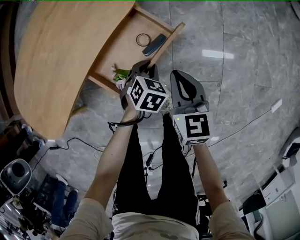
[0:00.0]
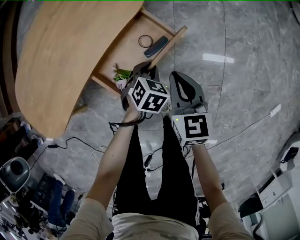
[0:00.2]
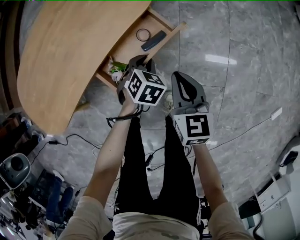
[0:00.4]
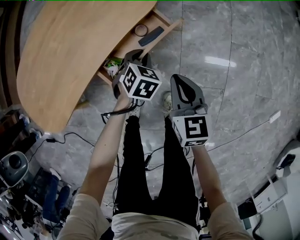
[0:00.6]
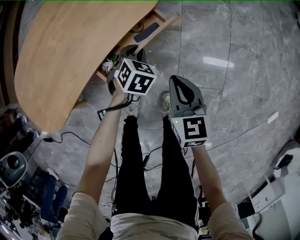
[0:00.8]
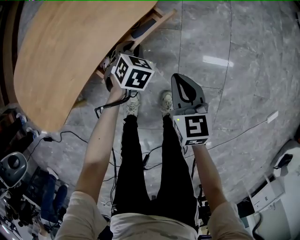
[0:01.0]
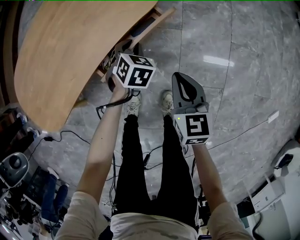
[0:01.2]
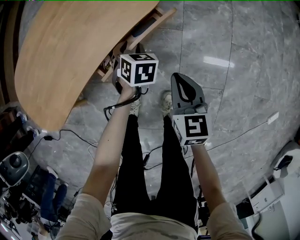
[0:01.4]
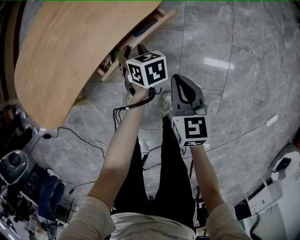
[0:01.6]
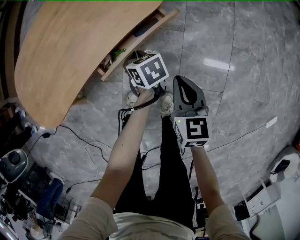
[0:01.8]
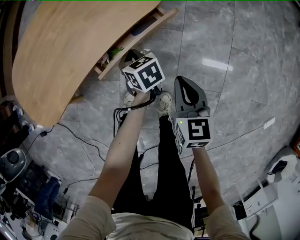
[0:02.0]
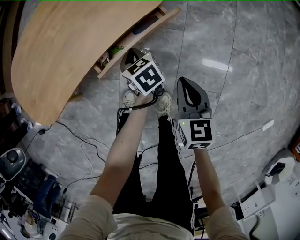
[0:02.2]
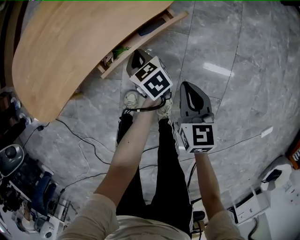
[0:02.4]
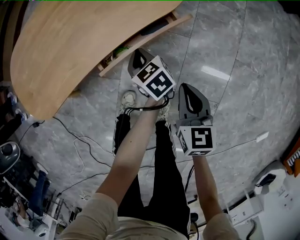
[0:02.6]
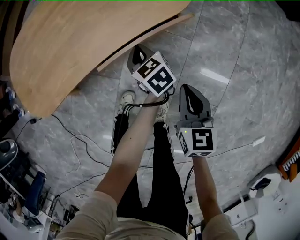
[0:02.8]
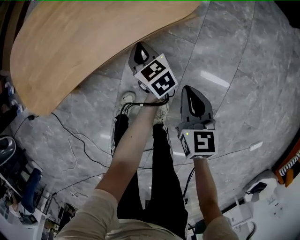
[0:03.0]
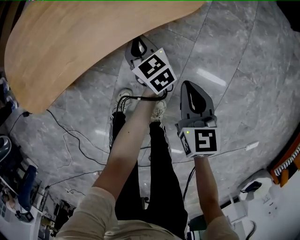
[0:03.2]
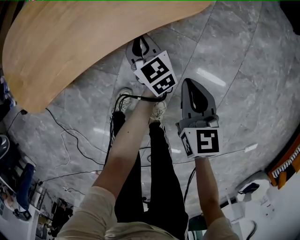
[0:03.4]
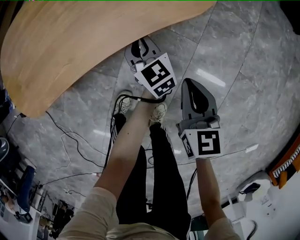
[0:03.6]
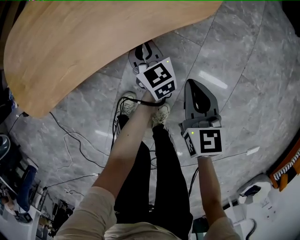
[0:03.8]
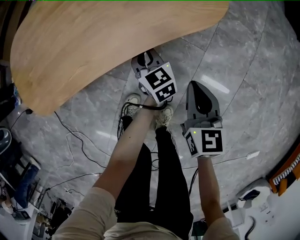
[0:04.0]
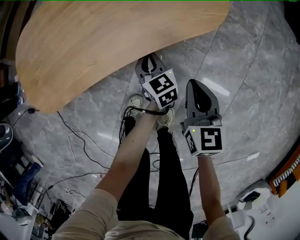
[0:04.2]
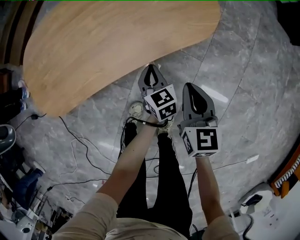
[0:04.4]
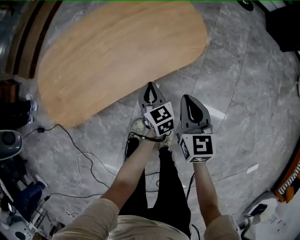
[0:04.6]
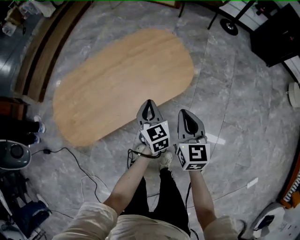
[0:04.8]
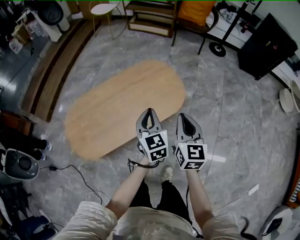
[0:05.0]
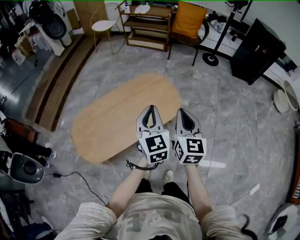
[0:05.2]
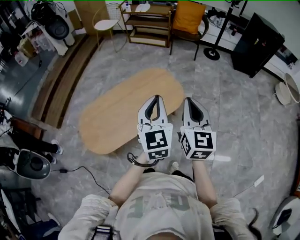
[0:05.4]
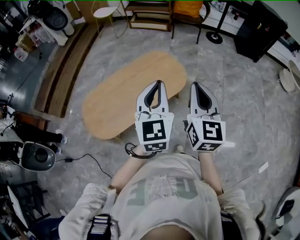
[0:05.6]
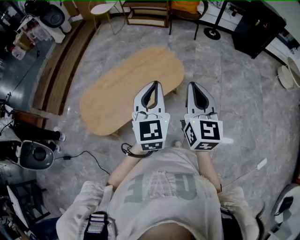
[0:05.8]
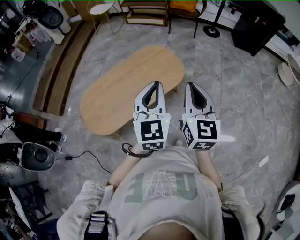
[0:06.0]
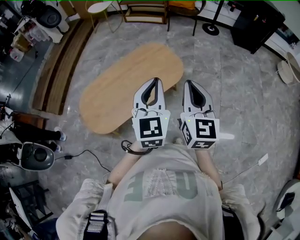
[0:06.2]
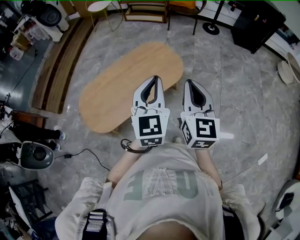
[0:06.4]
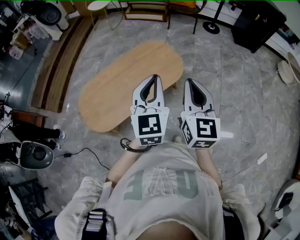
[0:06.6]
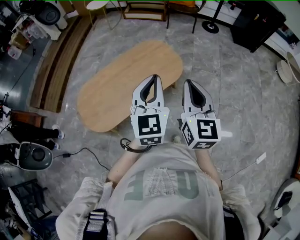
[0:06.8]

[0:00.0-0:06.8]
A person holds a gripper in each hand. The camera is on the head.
0:00.0 to 0:01.4: The left gripper goes some 15 cm to the left and forward, rotates approximately 30 degrees, and opens.
0:01.4 to 0:02.8: The left gripper rotates around the line of its fingers by roughly 50 degrees, counterclockwise from behind, and closes up.
0:02.8 to 0:04.0: The left gripper ends up some 5 cm from where it was; the right gripper travels forward by some 5 cm.
0:04.0 to 0:05.4: The two grippers go approximately 60 cm upward. The left gripper turns by approximately 40 degrees; the right gripper turns by some 30 degrees.
0:05.4 to 0:06.8: The right gripper shifts some 5 cm backward.

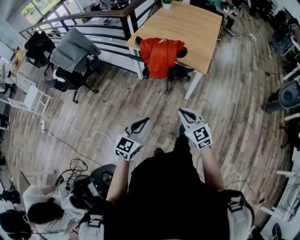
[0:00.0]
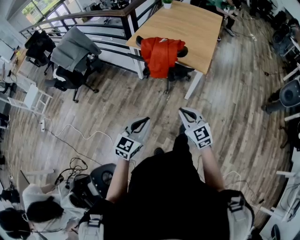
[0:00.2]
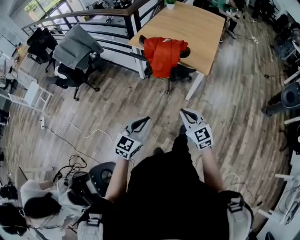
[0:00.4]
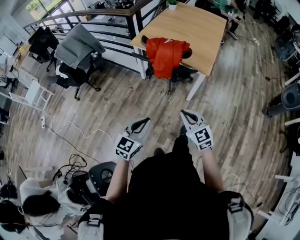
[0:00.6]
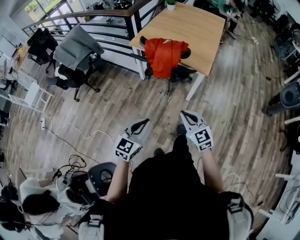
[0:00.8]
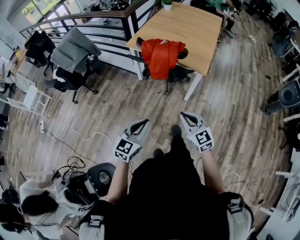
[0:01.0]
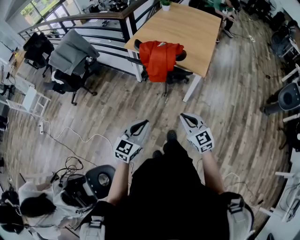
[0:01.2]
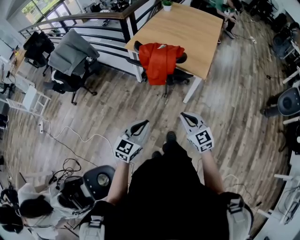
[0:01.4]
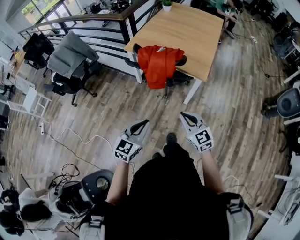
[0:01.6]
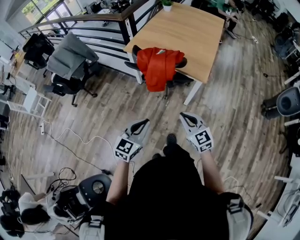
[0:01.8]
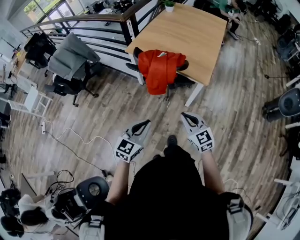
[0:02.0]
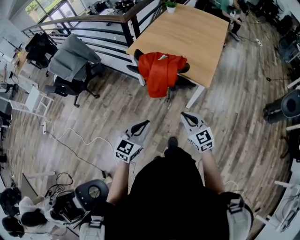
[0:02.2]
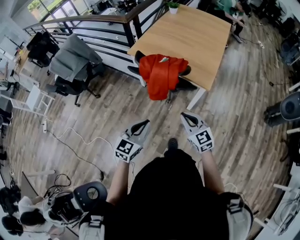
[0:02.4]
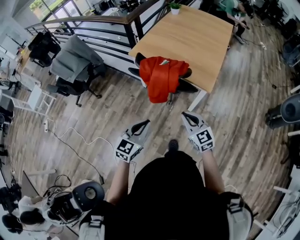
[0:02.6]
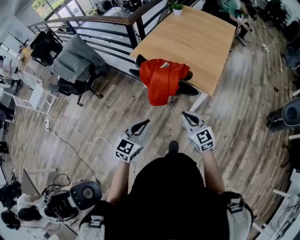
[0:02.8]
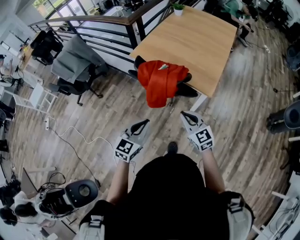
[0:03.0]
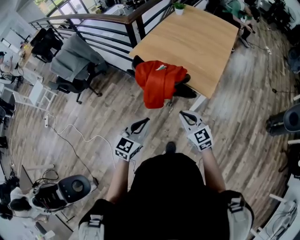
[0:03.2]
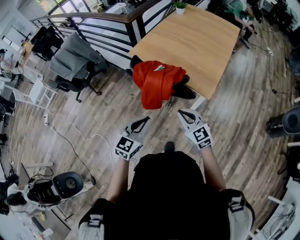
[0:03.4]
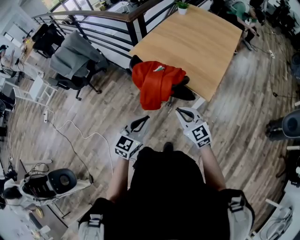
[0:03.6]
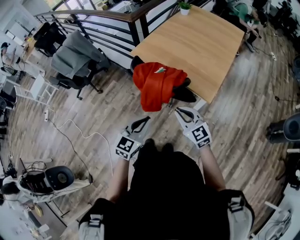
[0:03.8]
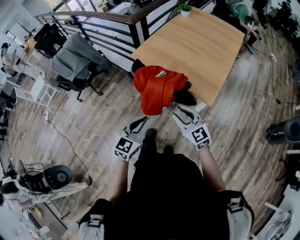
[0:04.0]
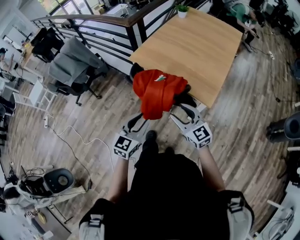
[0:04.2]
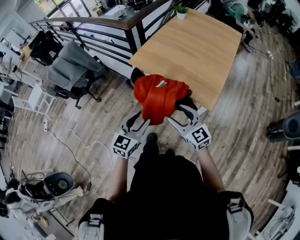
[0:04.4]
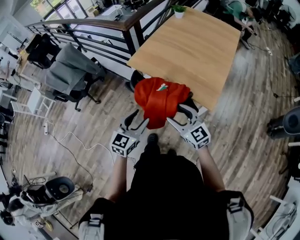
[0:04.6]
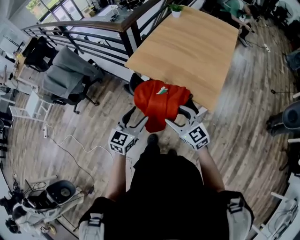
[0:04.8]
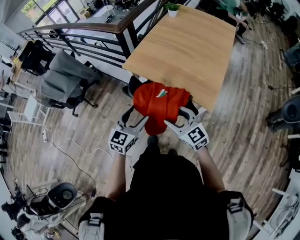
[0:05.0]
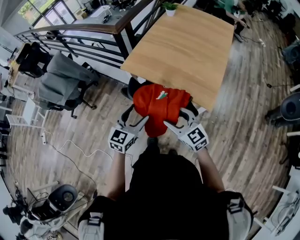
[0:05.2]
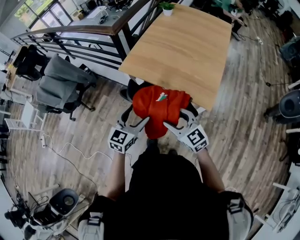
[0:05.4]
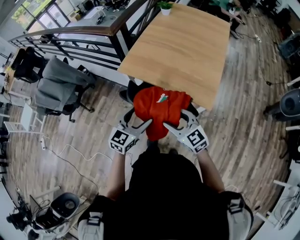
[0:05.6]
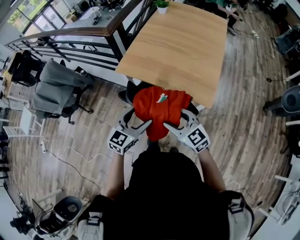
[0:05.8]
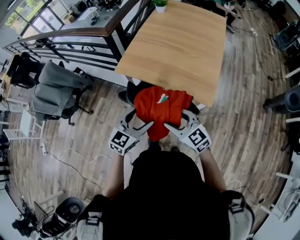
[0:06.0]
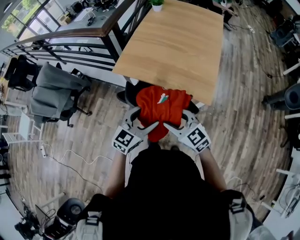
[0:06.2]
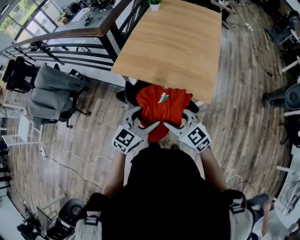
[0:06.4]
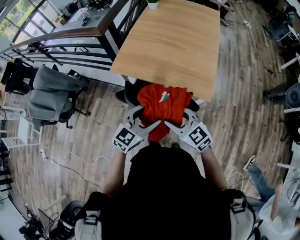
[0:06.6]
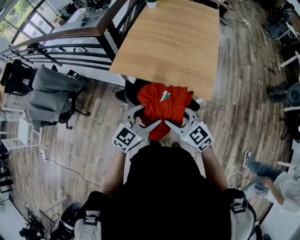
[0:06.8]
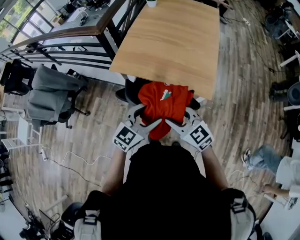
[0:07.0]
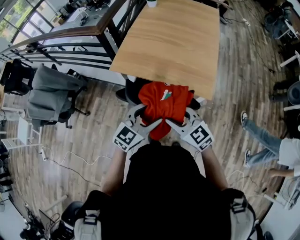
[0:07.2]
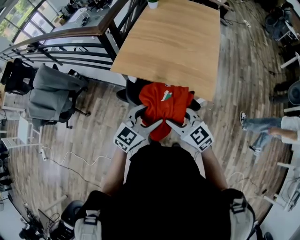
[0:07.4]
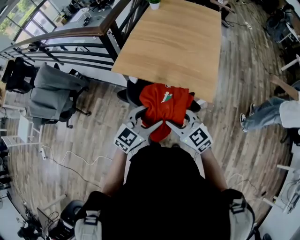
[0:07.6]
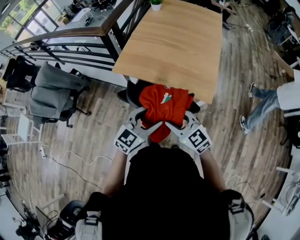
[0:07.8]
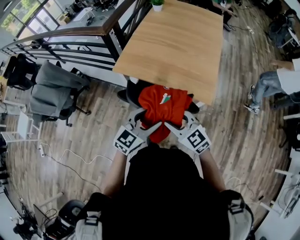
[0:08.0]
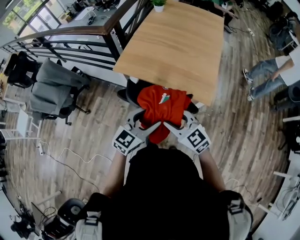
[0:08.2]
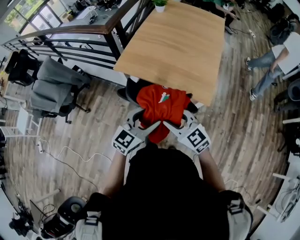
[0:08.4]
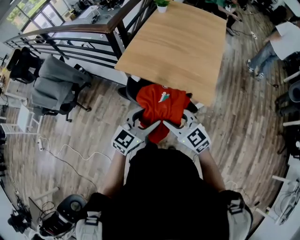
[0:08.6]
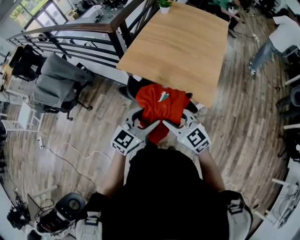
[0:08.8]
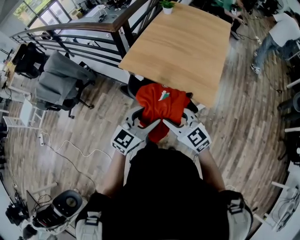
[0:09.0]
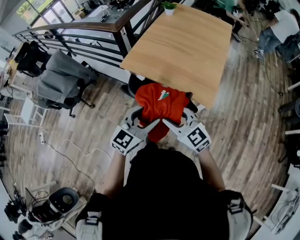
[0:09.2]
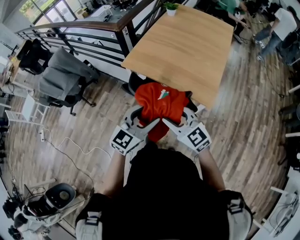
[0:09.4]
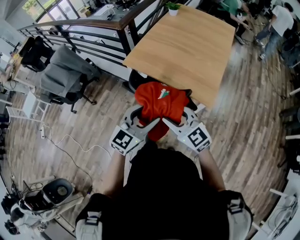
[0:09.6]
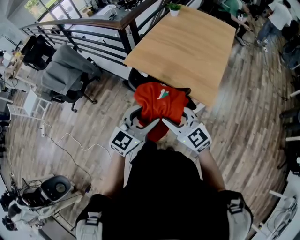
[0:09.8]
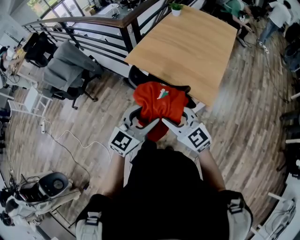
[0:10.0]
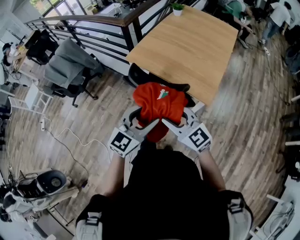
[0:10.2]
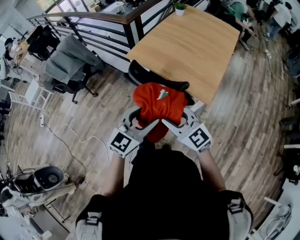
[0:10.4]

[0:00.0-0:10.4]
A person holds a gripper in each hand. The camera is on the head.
0:00.0 to 0:01.4: There are only small adjustments of the grippers.
0:01.4 to 0:03.0: The grippers both shift forward by some 15 cm.
0:03.0 to 0:04.4: The grippers both shift forward by approximately 10 cm. The left gripper opens up; the right gripper opens its fingers.
0:04.4 to 0:06.0: The left gripper is displaced forward by approximately 10 cm, and opens its fingers. The right gripper heads forward and to the left, covering roughly 10 cm.
0:06.0 to 0:07.4: The grippers stay close to where they were, moving slightly.
0:07.4 to 0:09.0: The grippers move only a little.
0:09.0 to 0:10.4: The grippers both shift backward by roughly 10 cm.

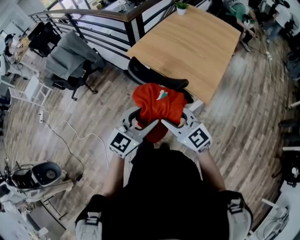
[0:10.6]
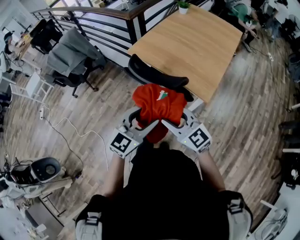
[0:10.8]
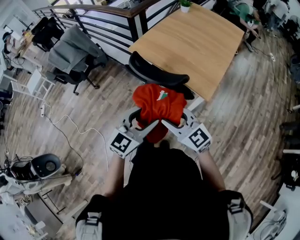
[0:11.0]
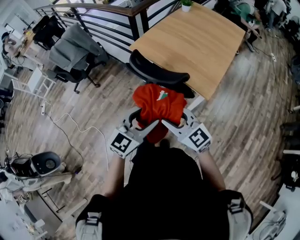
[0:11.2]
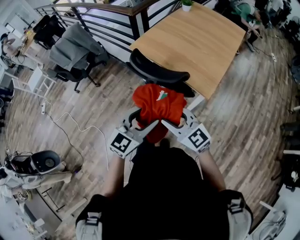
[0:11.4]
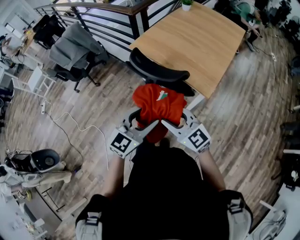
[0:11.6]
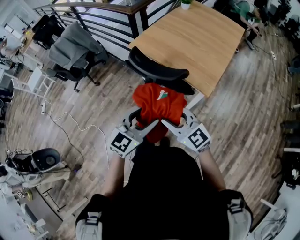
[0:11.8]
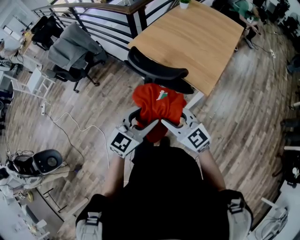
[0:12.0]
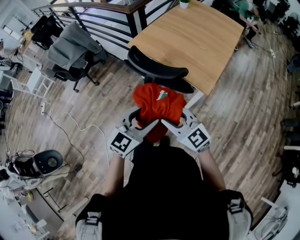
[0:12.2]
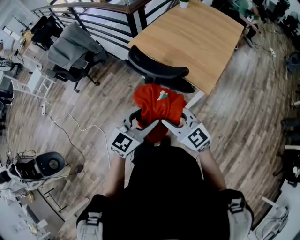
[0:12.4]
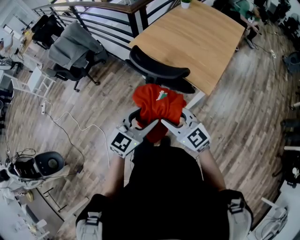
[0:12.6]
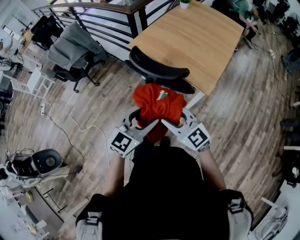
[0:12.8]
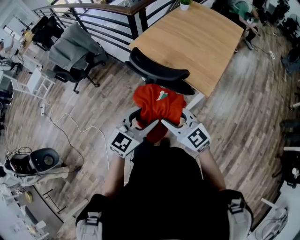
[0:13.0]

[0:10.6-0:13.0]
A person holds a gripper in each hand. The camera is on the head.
0:10.6 to 0:11.8: Both grippers travel together backward, approximately 5 cm.
0:11.8 to 0:13.0: Both grippers stay about where they are.

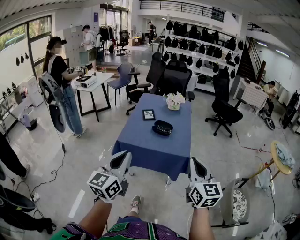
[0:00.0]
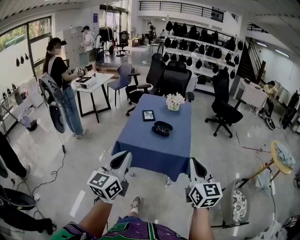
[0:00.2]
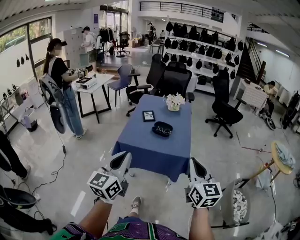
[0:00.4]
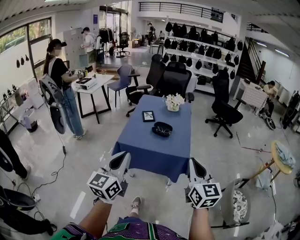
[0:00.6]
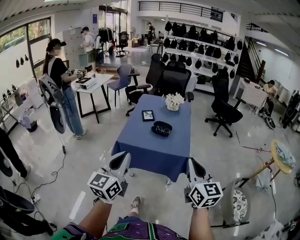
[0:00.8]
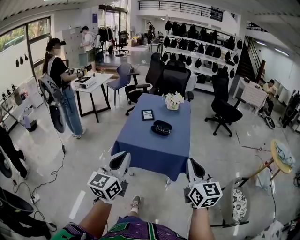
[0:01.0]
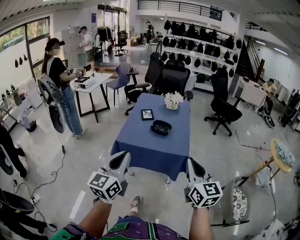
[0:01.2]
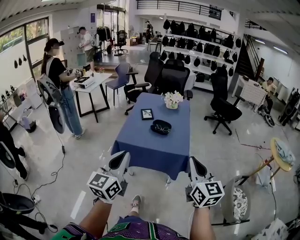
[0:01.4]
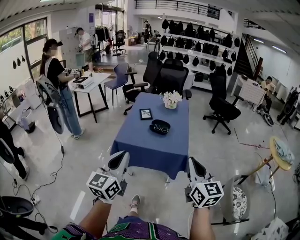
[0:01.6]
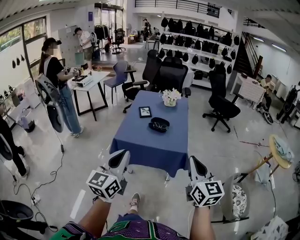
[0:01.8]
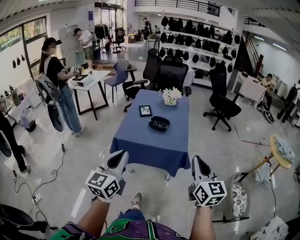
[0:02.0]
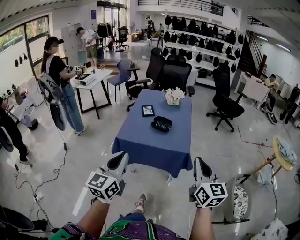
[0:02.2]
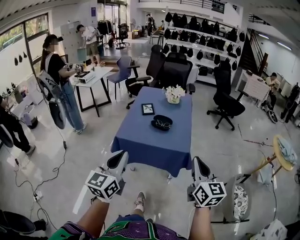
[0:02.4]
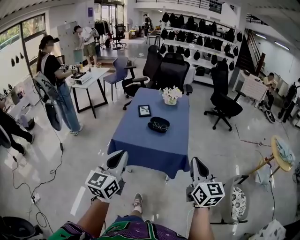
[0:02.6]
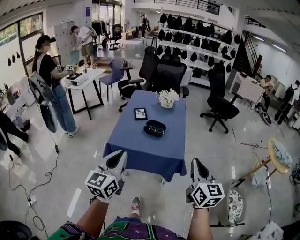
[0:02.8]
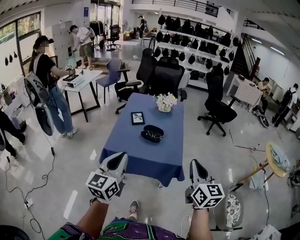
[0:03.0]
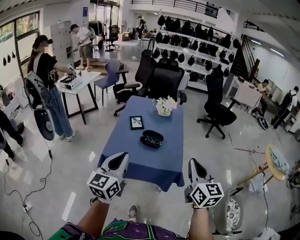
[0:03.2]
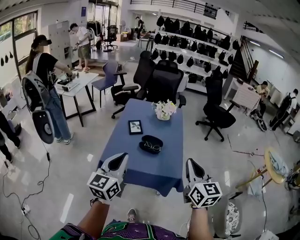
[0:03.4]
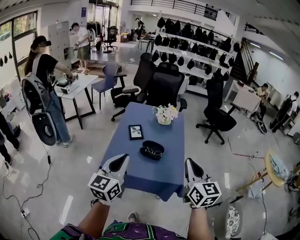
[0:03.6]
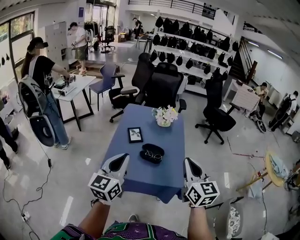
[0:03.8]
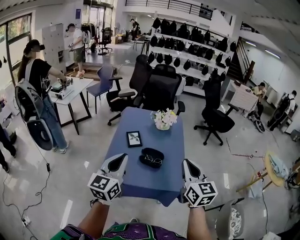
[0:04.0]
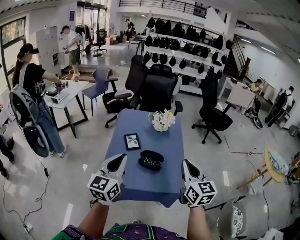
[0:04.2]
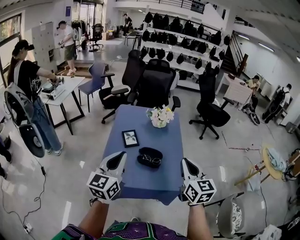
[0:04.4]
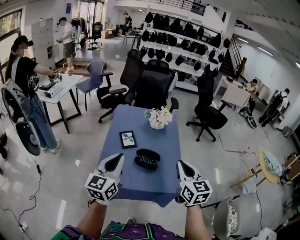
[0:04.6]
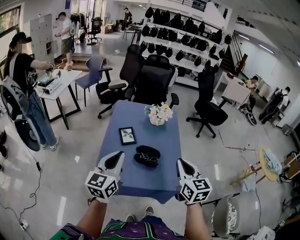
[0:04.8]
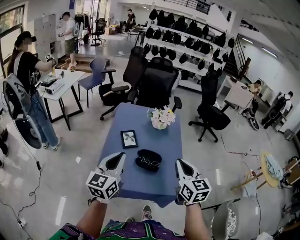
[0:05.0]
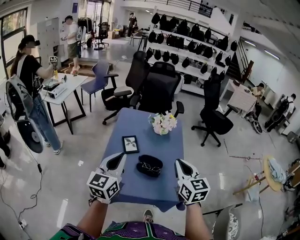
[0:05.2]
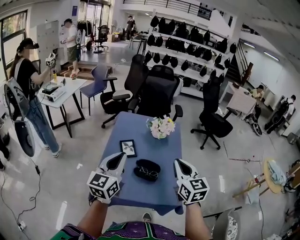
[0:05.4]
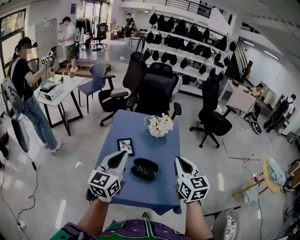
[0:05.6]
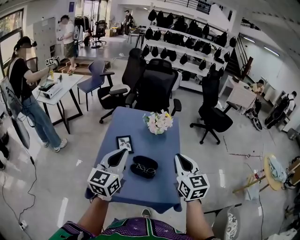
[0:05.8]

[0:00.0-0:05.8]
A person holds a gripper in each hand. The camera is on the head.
0:00.0 to 0:01.4: The two grippers keep their place.
0:01.4 to 0:02.8: Both grippers move forward, roughly 5 cm.
0:02.8 to 0:04.4: Both grippers travel together forward, about 30 cm.
0:04.4 to 0:05.8: Both grippers move forward, approximately 10 cm.
